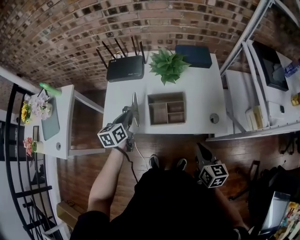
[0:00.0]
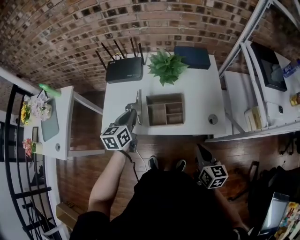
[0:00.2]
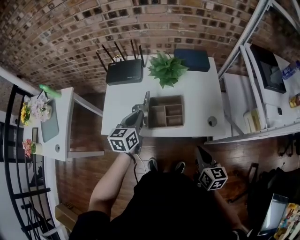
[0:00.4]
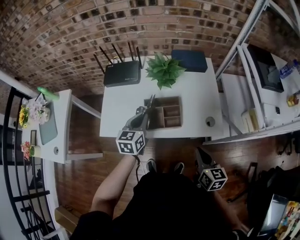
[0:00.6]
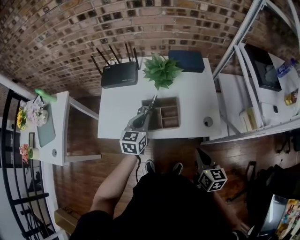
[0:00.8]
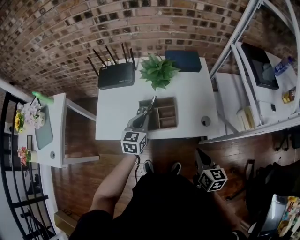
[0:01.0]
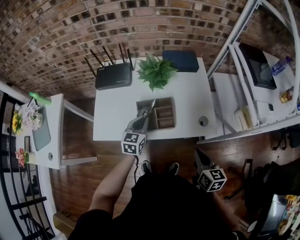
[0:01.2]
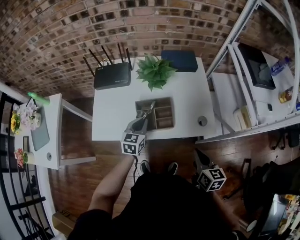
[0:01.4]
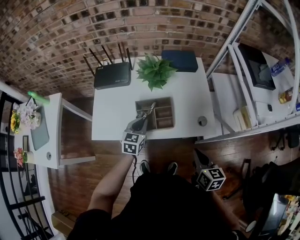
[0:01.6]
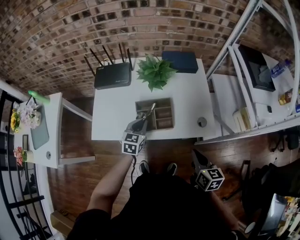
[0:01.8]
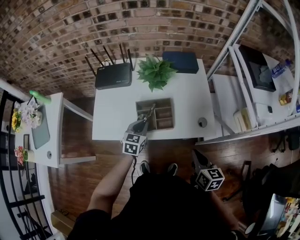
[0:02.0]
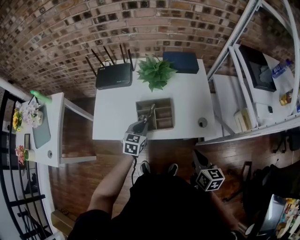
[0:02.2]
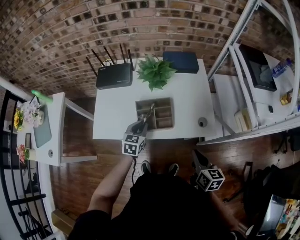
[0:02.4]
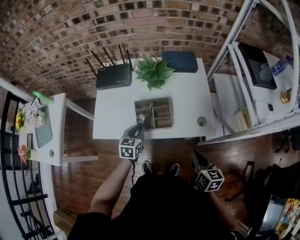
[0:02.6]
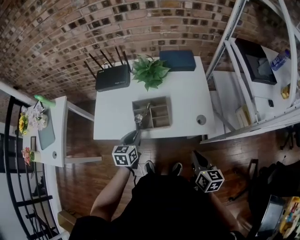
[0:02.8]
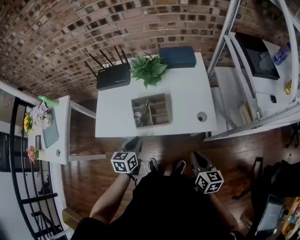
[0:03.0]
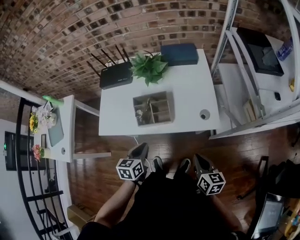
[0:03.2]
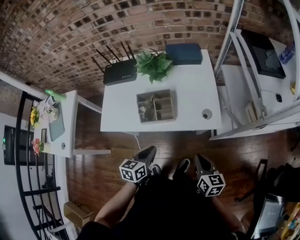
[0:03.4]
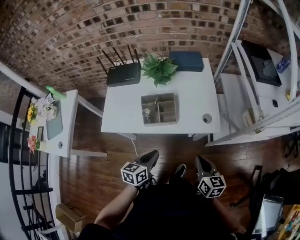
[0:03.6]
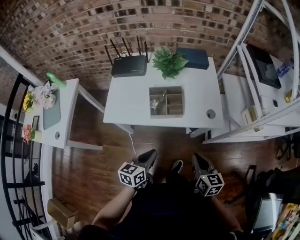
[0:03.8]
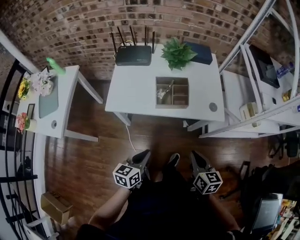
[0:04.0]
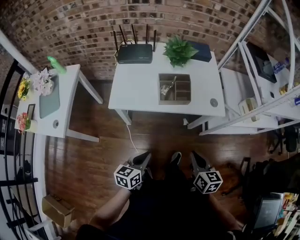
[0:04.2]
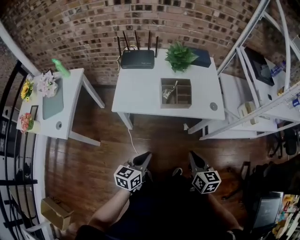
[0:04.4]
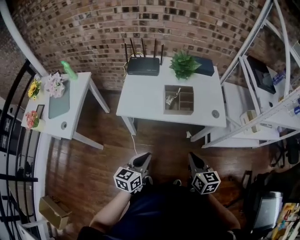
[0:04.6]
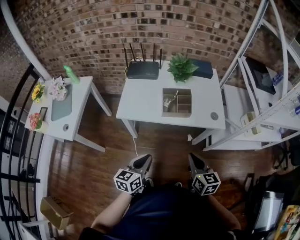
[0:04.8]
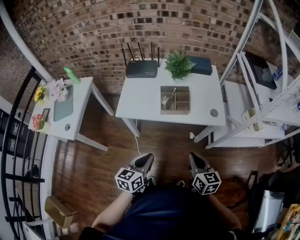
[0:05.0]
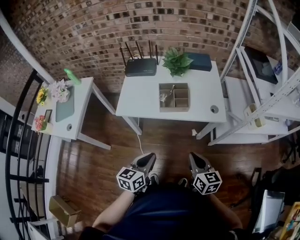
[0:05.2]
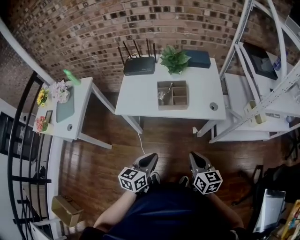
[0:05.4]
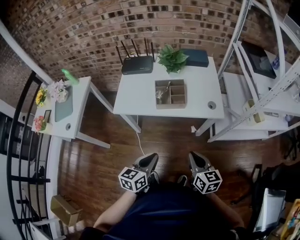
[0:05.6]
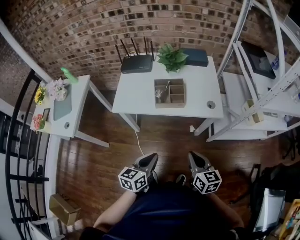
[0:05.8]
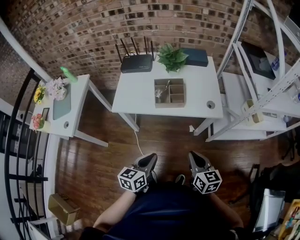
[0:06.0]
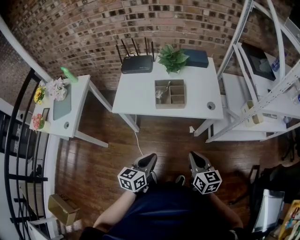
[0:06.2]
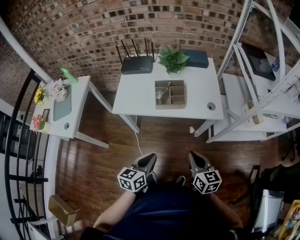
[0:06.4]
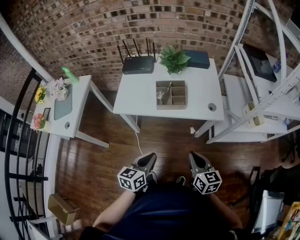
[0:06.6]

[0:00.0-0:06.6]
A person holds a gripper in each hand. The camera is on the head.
0:00.0 to 0:01.6: The left gripper moves to the right, approximately 15 cm, and turns by about 30 degrees.
0:01.6 to 0:03.2: The right gripper travels backward by approximately 5 cm; the left gripper moves backward, some 15 cm.
0:03.2 to 0:05.0: The left gripper moves backward, roughly 20 cm, while the right gripper travels to the left, backward and upward by some 20 cm.
0:05.0 to 0:06.6: The grippers make only small movements.

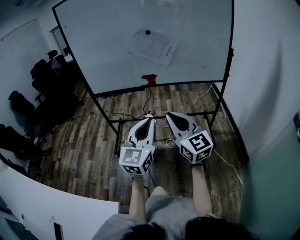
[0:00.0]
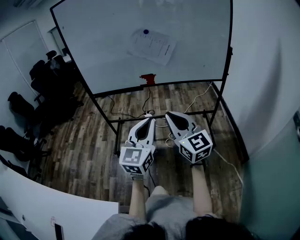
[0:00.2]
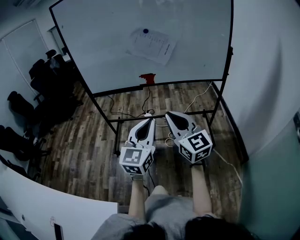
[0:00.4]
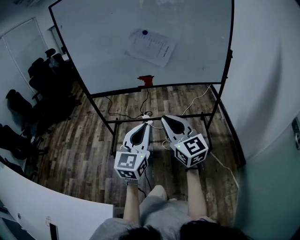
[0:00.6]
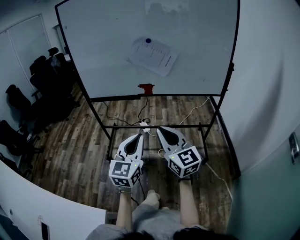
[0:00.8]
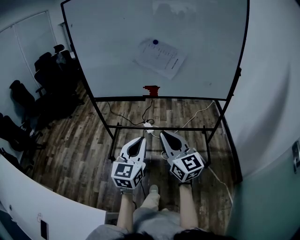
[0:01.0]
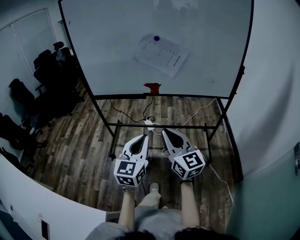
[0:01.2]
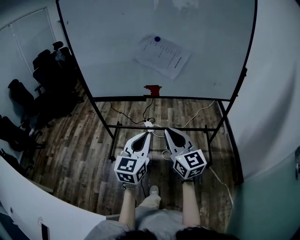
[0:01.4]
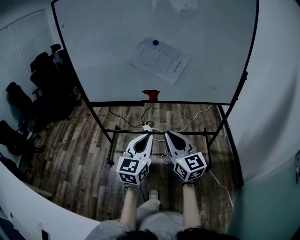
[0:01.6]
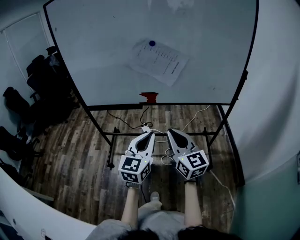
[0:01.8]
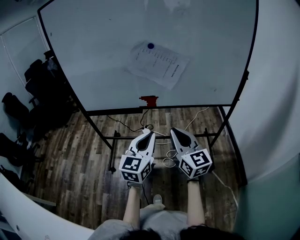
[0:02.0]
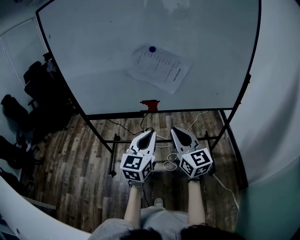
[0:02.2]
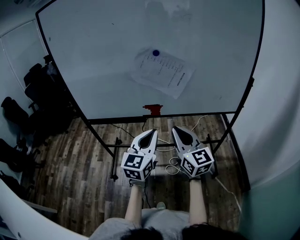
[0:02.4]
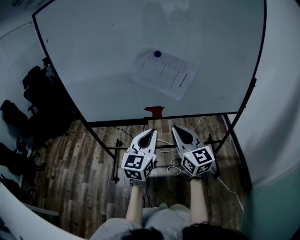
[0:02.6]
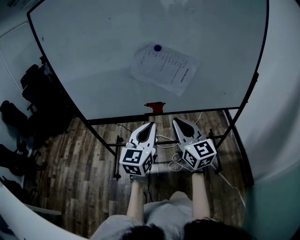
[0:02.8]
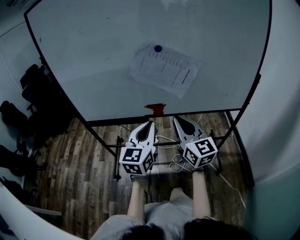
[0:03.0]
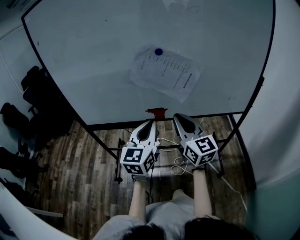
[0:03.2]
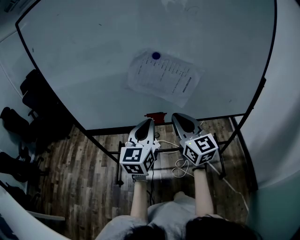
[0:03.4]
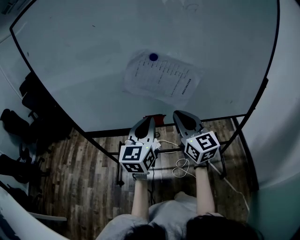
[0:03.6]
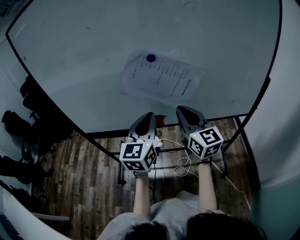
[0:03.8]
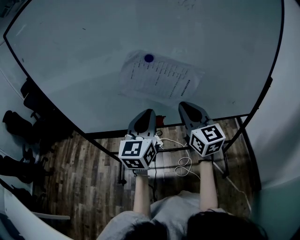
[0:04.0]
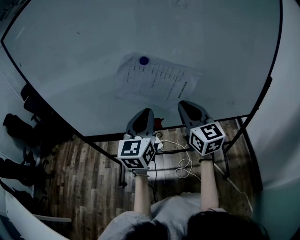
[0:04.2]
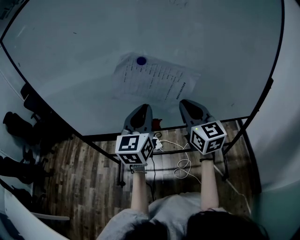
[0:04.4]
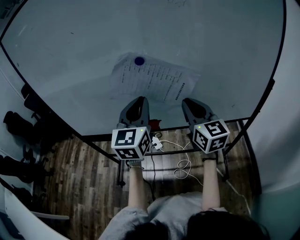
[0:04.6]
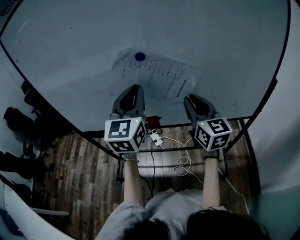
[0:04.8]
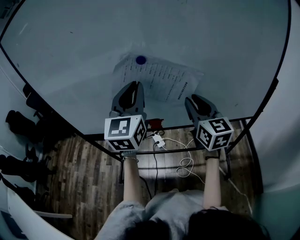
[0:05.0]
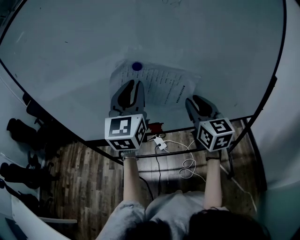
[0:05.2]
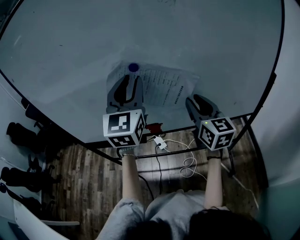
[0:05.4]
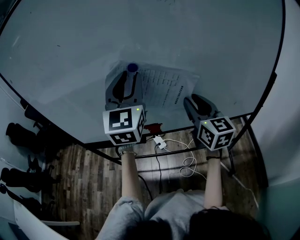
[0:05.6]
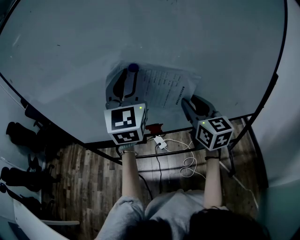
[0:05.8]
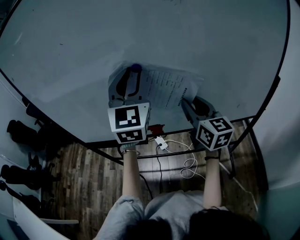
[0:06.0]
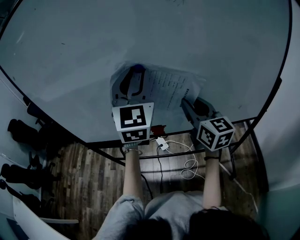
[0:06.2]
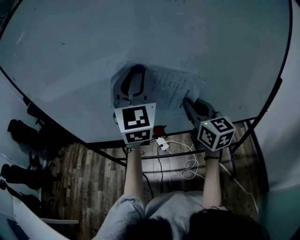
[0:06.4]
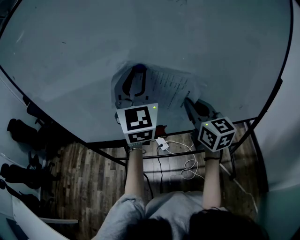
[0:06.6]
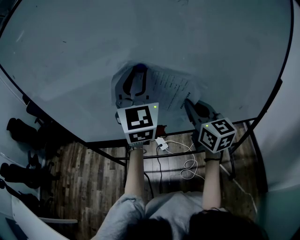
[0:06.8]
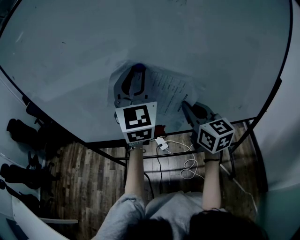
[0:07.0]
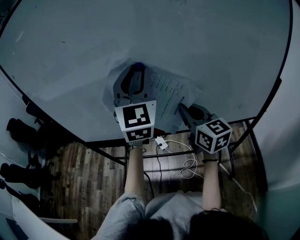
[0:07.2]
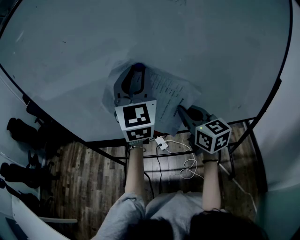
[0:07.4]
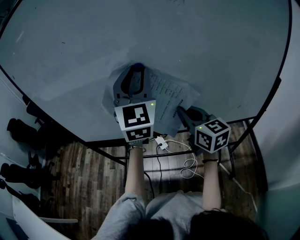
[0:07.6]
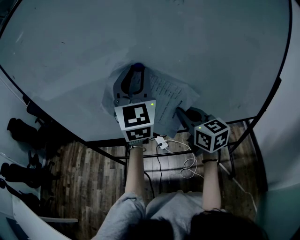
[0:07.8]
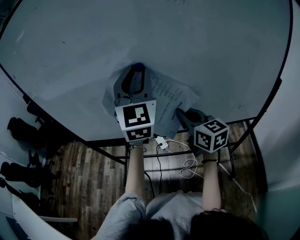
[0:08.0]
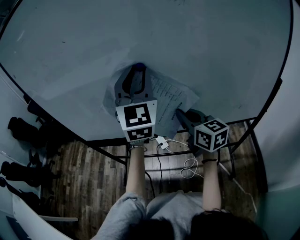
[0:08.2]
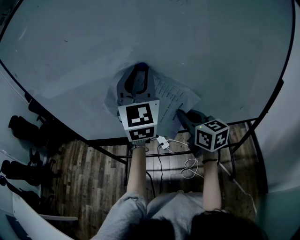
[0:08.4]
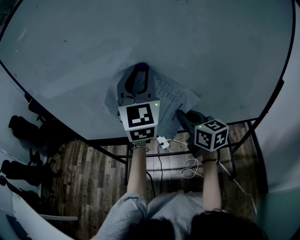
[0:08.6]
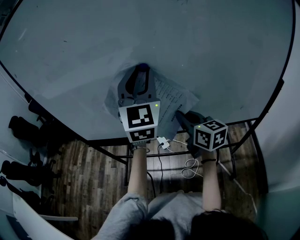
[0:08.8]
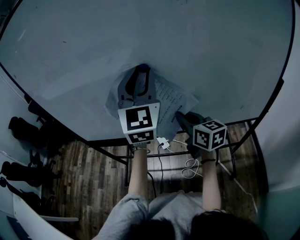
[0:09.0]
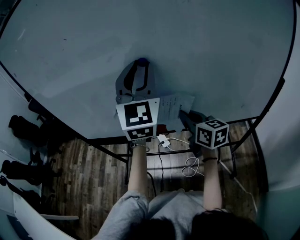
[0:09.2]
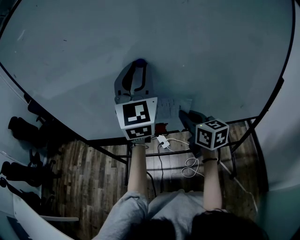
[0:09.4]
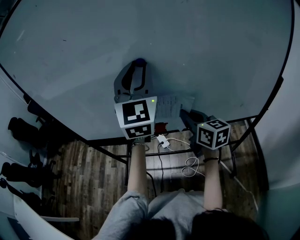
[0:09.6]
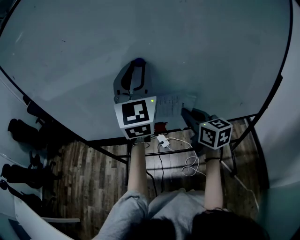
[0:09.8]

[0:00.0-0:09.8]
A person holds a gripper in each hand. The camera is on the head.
0:00.0 to 0:01.4: Both grippers move forward, about 10 cm.
0:01.4 to 0:02.8: Both grippers travel together forward, approximately 20 cm.
0:02.8 to 0:04.2: The left gripper is displaced forward by approximately 15 cm; the right gripper goes about 20 cm forward and to the right.
0:04.2 to 0:05.6: The left gripper travels upward and forward by approximately 15 cm, turns by approximately 20 degrees, and opens up, while the right gripper is displaced to the right by some 5 cm, and opens up.
0:05.6 to 0:07.0: The right gripper closes up.
0:07.0 to 0:08.4: The right gripper ends up some 5 cm from where it was.
0:08.4 to 0:09.8: The grippers stay close to where they were, moving slightly.

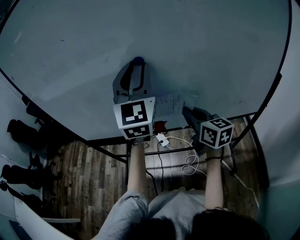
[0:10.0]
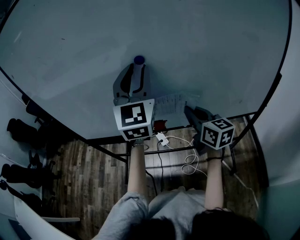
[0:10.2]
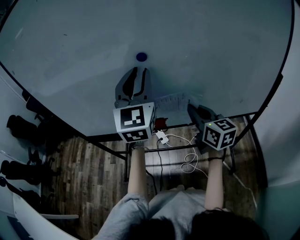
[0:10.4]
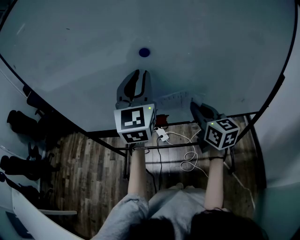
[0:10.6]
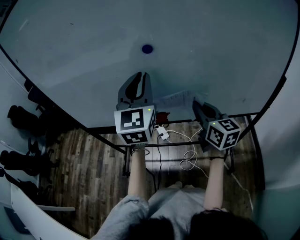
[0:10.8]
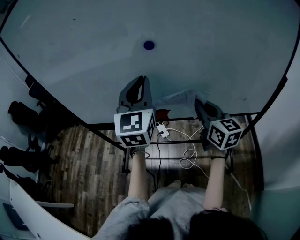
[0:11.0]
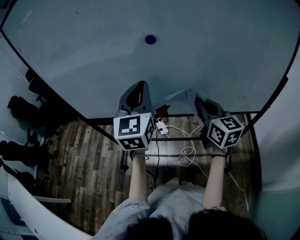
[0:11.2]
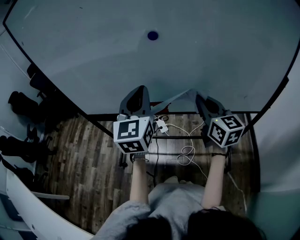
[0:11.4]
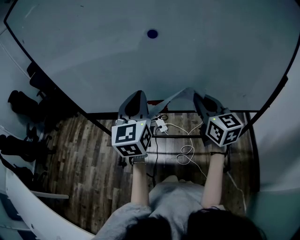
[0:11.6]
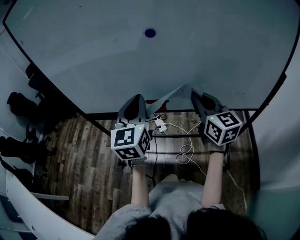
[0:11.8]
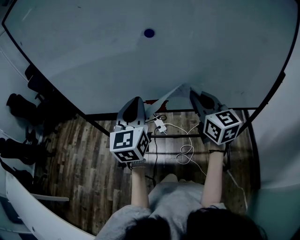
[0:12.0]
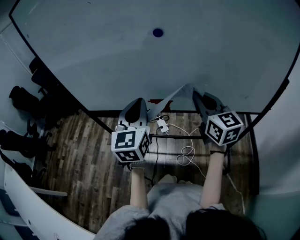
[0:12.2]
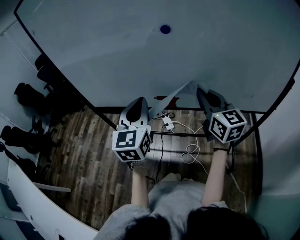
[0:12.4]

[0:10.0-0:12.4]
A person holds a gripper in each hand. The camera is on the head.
0:10.0 to 0:11.2: The left gripper moves downward, to the left and backward, about 15 cm, and closes its fingers.
0:11.2 to 0:12.4: The left gripper is displaced to the left, downward and backward by roughly 10 cm.

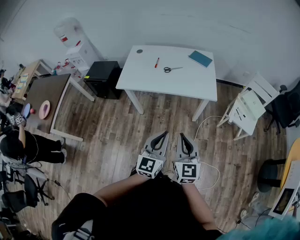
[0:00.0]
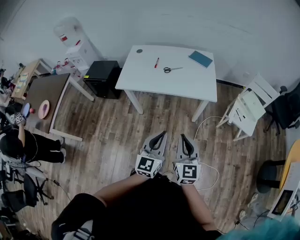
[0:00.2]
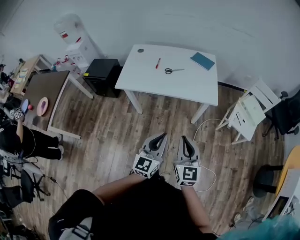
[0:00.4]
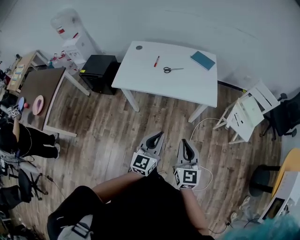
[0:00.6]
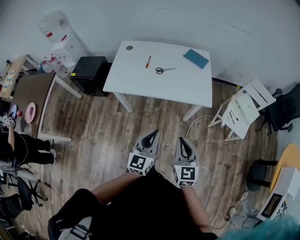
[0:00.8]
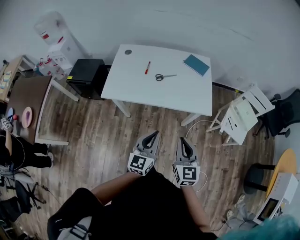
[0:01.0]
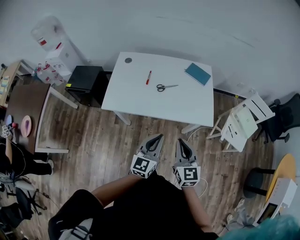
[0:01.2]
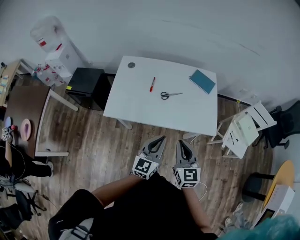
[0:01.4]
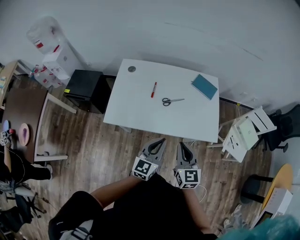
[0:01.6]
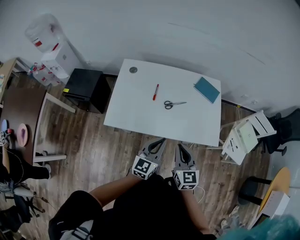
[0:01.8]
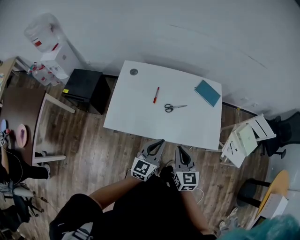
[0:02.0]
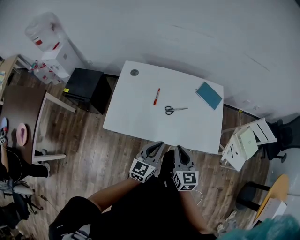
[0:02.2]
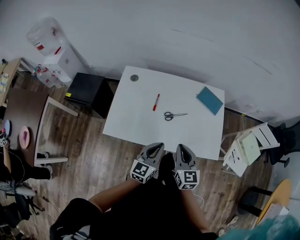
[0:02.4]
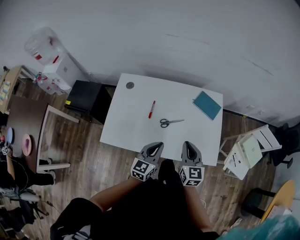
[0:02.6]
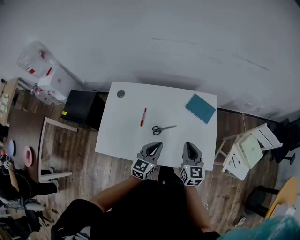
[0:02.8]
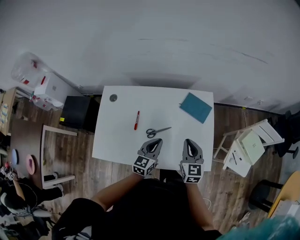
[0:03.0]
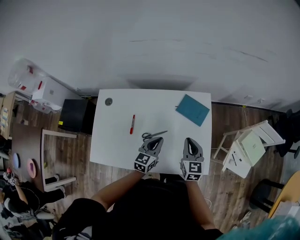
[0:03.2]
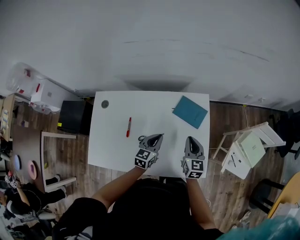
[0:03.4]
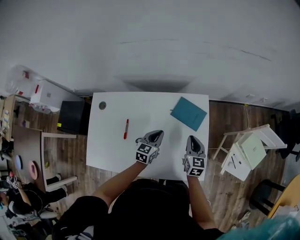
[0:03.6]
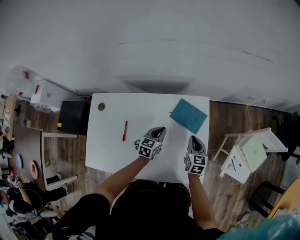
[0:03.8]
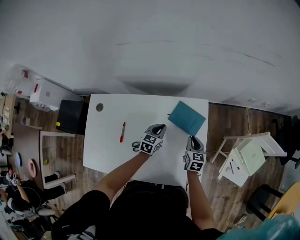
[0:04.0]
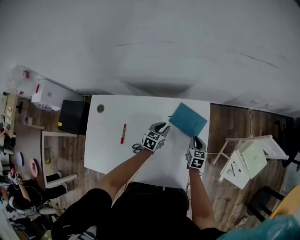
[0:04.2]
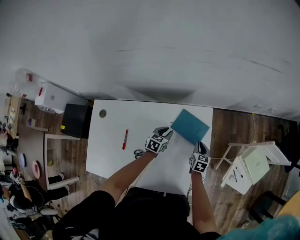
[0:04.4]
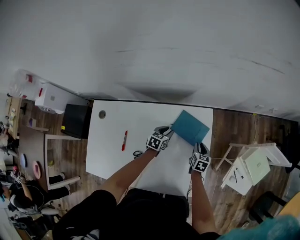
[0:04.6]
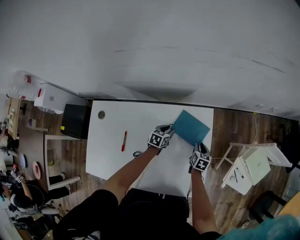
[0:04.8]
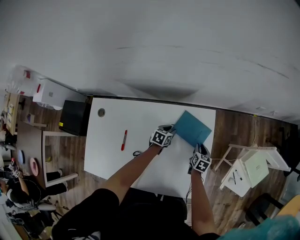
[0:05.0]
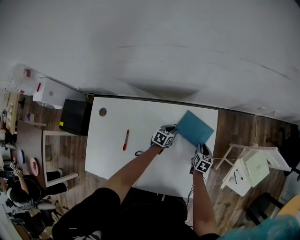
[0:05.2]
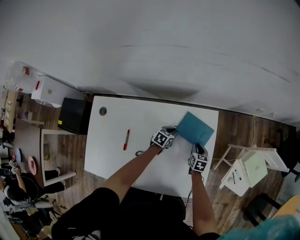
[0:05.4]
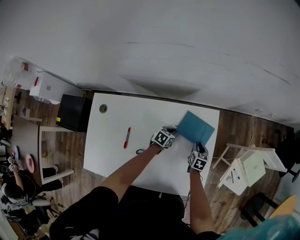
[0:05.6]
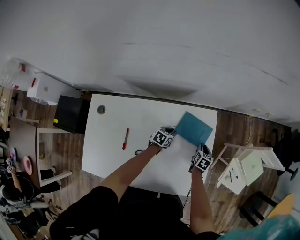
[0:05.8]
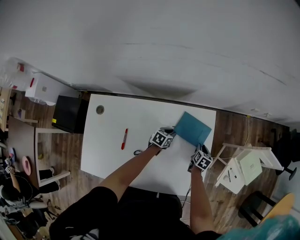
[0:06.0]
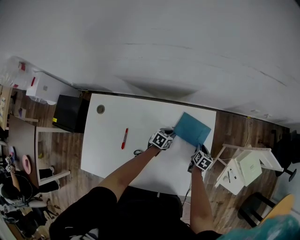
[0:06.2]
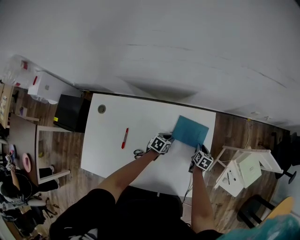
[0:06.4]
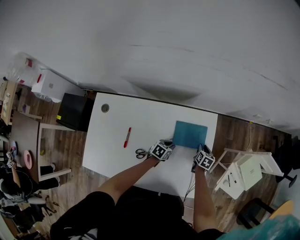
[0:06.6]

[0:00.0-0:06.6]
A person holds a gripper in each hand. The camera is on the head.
0:00.0 to 0:01.6: The grippers both shift forward by about 35 cm.
0:01.6 to 0:03.2: The right gripper moves forward and to the right, approximately 35 cm. The left gripper is displaced forward by roughly 30 cm.
0:03.2 to 0:05.0: The right gripper travels downward and forward by roughly 30 cm, and turns by some 30 degrees. Meanwhile the left gripper is displaced forward and downward by roughly 30 cm, swivels approximately 30 degrees, and opens its fingers.
0:05.0 to 0:06.6: The left gripper is displaced backward by approximately 10 cm.
